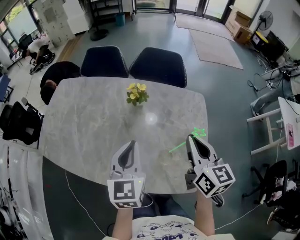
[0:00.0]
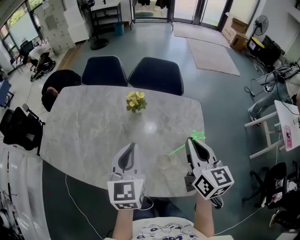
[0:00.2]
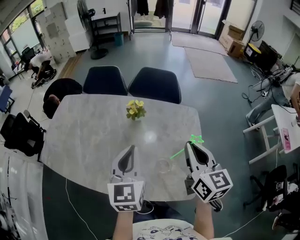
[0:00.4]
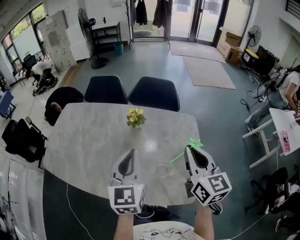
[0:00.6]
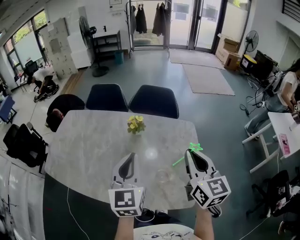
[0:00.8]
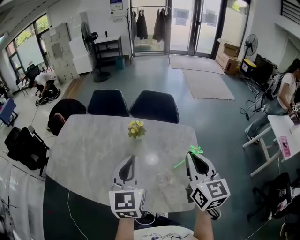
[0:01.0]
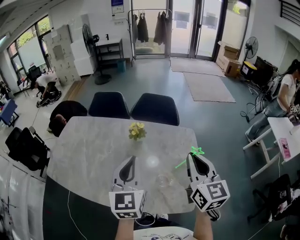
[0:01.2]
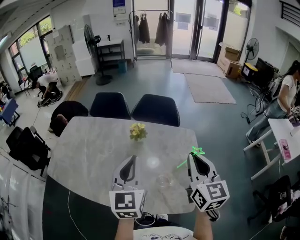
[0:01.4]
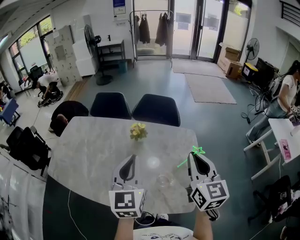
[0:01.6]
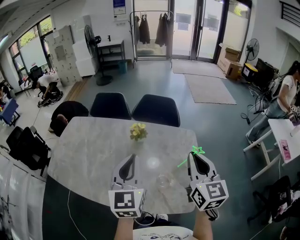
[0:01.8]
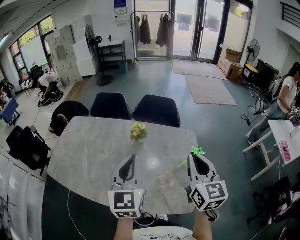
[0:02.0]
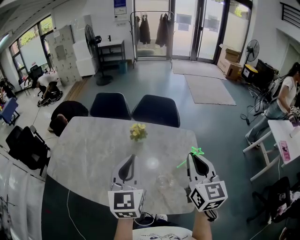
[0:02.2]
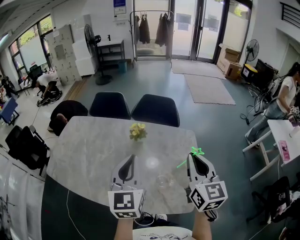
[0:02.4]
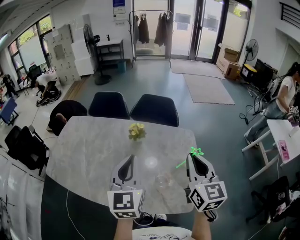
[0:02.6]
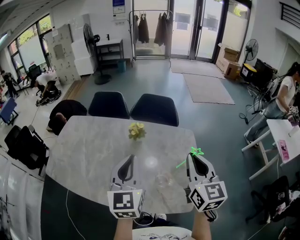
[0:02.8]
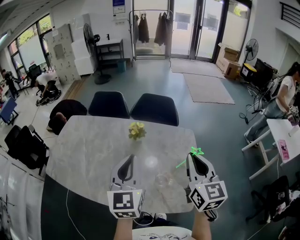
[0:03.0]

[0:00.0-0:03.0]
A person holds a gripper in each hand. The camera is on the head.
0.0 to 1.6 s: Both grippers travel together upward, some 10 cm.
1.6 to 3.0 s: The two grippers keep their place.

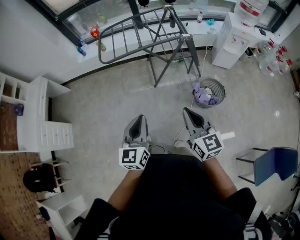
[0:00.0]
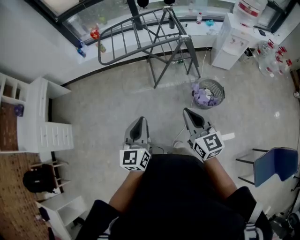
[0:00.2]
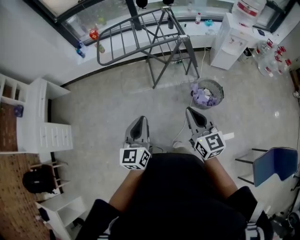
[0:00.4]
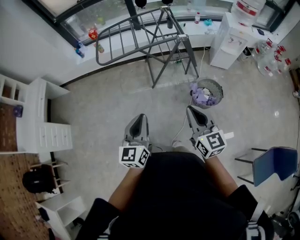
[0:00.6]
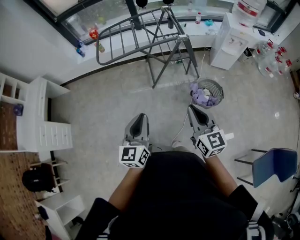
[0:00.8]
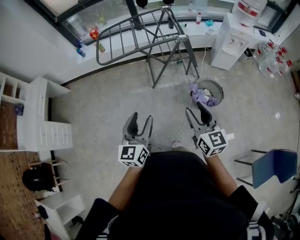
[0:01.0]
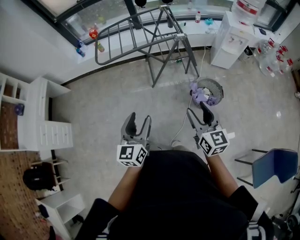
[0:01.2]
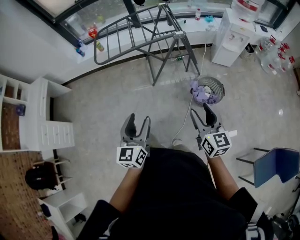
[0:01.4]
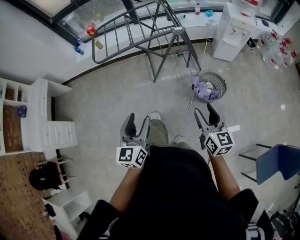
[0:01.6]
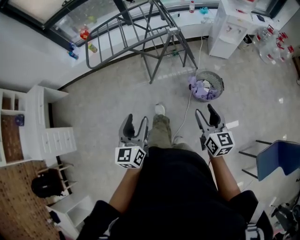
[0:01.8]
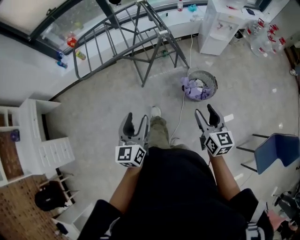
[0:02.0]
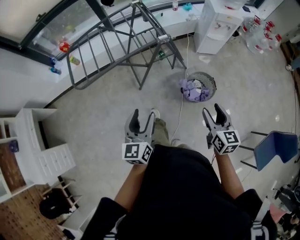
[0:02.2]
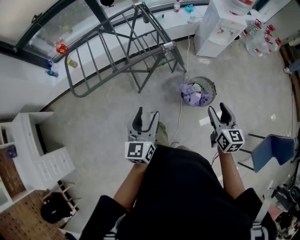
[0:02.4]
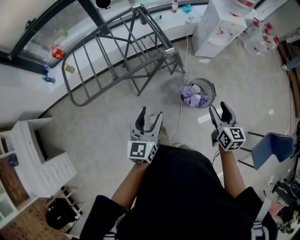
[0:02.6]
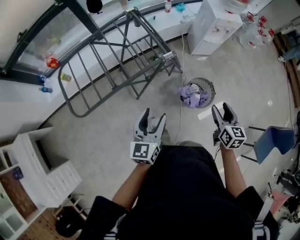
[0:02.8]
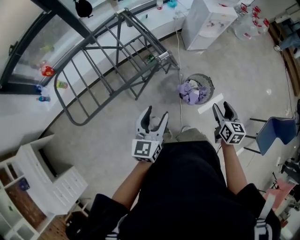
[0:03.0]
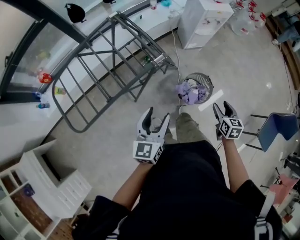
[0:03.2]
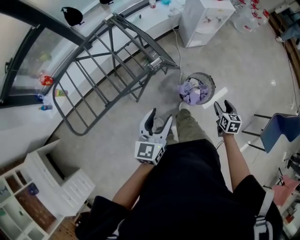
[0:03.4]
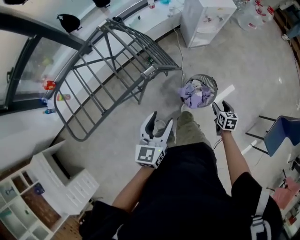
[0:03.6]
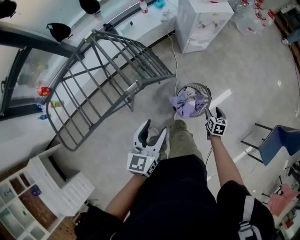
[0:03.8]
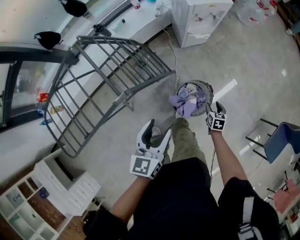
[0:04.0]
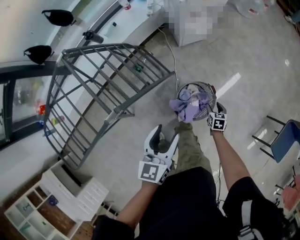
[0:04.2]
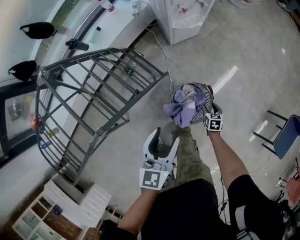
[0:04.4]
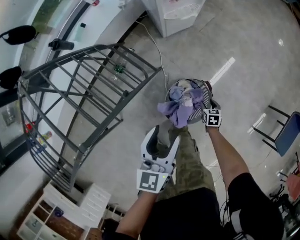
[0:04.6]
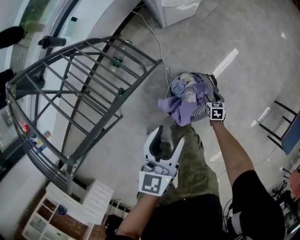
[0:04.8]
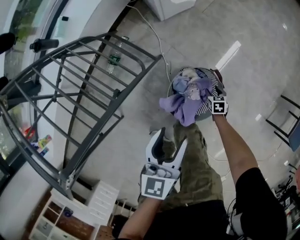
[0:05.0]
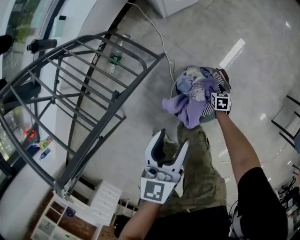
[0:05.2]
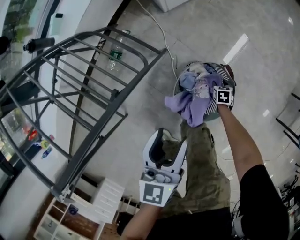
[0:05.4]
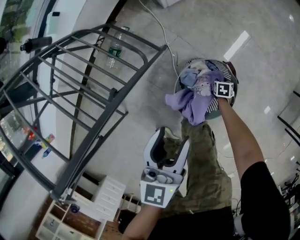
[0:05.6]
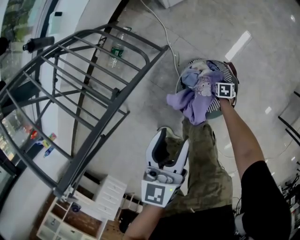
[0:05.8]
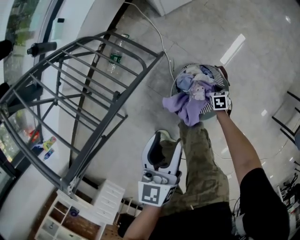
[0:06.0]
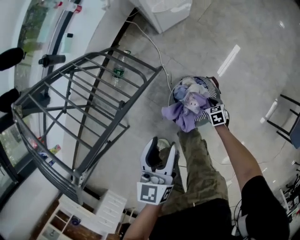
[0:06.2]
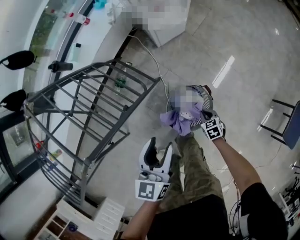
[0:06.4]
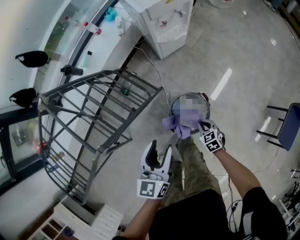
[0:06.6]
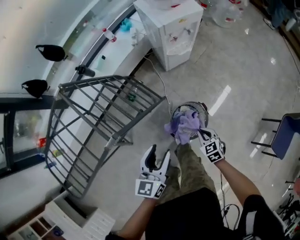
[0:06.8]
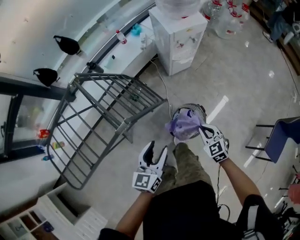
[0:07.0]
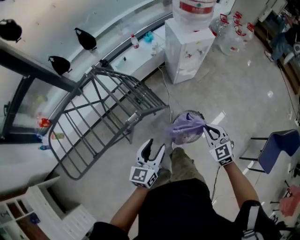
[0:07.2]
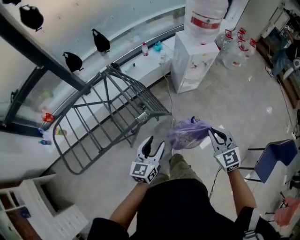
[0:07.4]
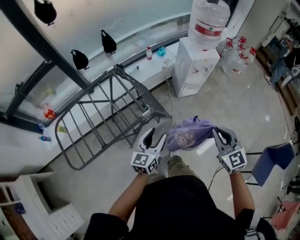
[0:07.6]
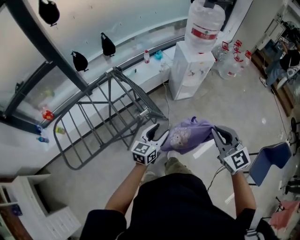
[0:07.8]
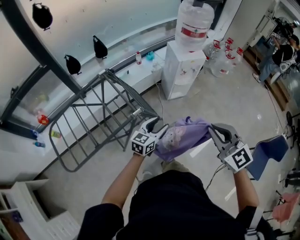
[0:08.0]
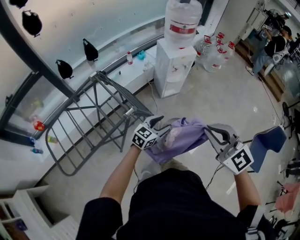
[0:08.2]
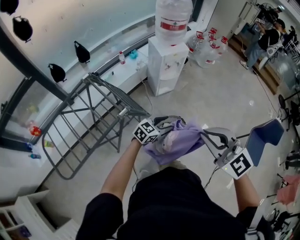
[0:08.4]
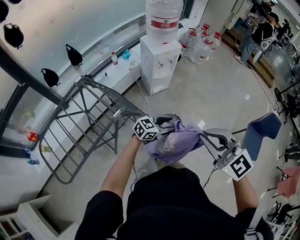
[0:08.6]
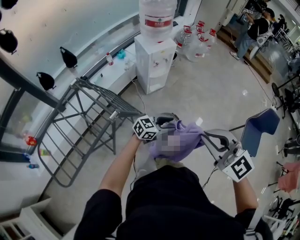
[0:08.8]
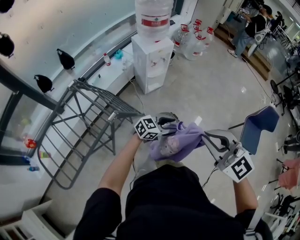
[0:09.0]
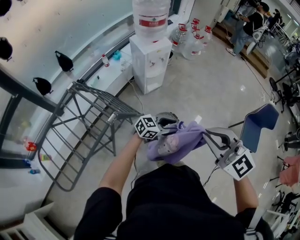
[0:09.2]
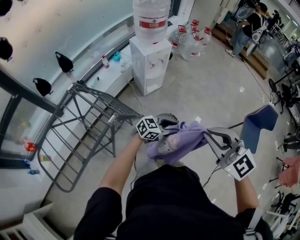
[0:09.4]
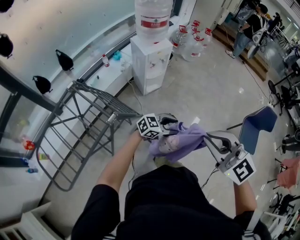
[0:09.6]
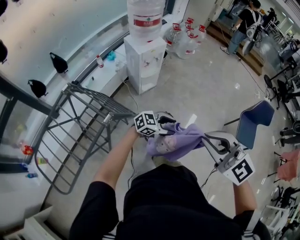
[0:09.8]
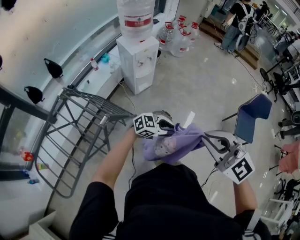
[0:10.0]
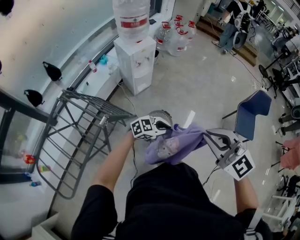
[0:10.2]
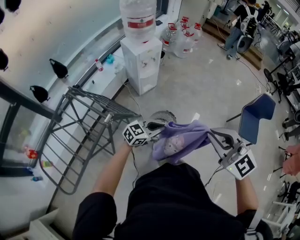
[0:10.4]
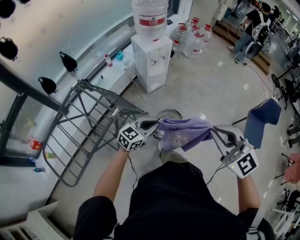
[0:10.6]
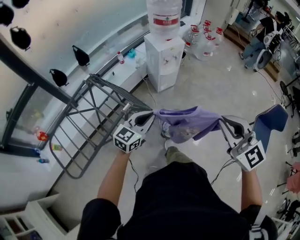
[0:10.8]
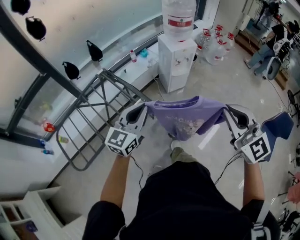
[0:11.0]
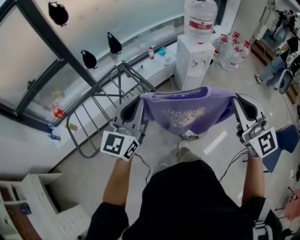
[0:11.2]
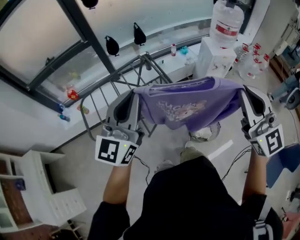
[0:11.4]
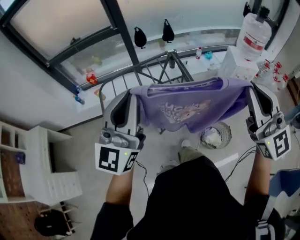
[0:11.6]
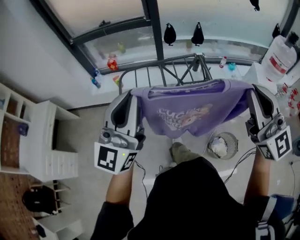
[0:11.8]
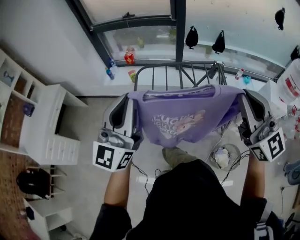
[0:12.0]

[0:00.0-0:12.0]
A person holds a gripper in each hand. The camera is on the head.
0.0 to 1.6 s: The right gripper is displaced to the right and downward by about 15 cm, and opens, while the left gripper heads to the right, covering some 5 cm, and opens its fingers.
1.6 to 3.0 s: The left gripper changes place by roughly 35 cm, and turns by roughly 30 degrees. Meanwhile the right gripper changes place by approximately 25 cm, and rotates roughly 40 degrees.
3.0 to 4.4 s: The left gripper moves forward, to the right and downward, roughly 40 cm. Meanwhile the right gripper moves downward and forward, some 50 cm, and swivels roughly 30 degrees.
4.4 to 6.0 s: The two grippers go some 20 cm downward. The right gripper closes up.
6.0 to 7.6 s: The right gripper goes about 90 cm upward, and angles its fingers upward, by approximately 60 degrees. Meanwhile the left gripper travels upward by some 35 cm.
7.6 to 9.0 s: The right gripper is displaced upward by roughly 10 cm. The left gripper changes place by about 25 cm, and changes its angle by about 70 degrees.
9.0 to 10.4 s: The left gripper shifts by approximately 5 cm, and closes. Meanwhile the right gripper moves about 5 cm.
10.4 to 12.0 s: The pair of grippers is taken some 50 cm. The right gripper changes its angle by approximately 60 degrees, while the left gripper tilts its fingers some 30 degrees upward.

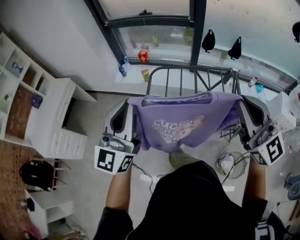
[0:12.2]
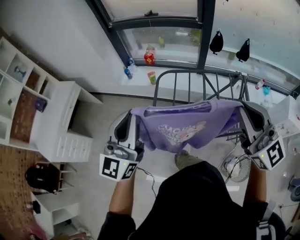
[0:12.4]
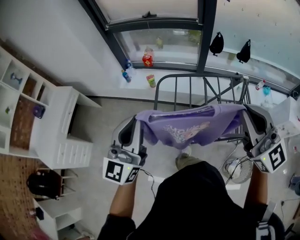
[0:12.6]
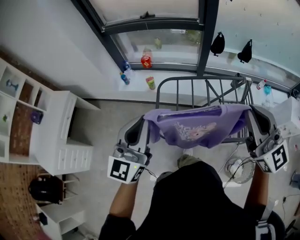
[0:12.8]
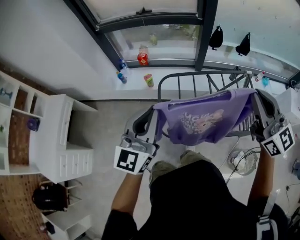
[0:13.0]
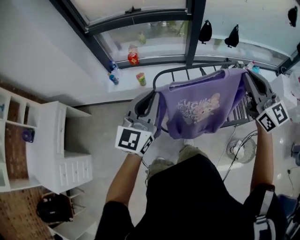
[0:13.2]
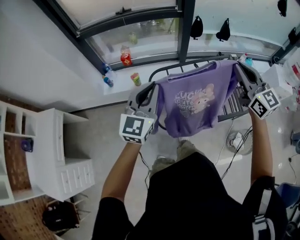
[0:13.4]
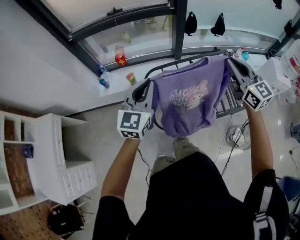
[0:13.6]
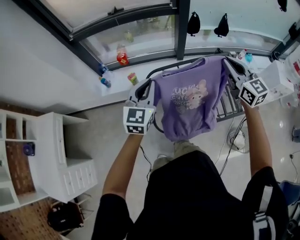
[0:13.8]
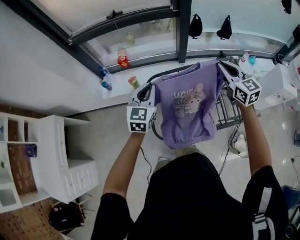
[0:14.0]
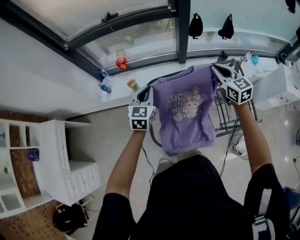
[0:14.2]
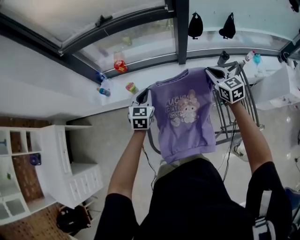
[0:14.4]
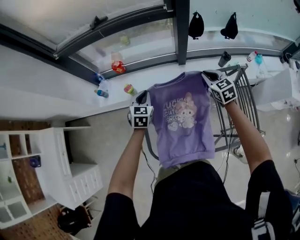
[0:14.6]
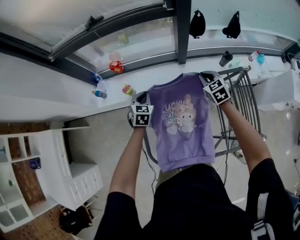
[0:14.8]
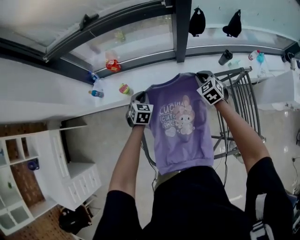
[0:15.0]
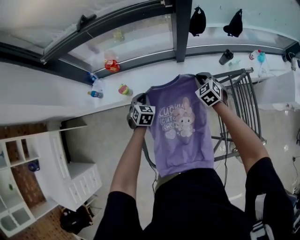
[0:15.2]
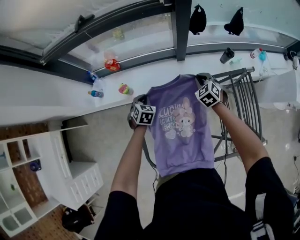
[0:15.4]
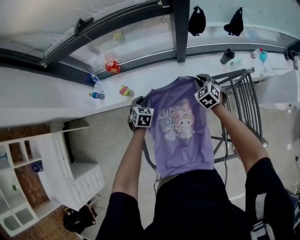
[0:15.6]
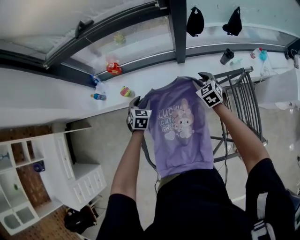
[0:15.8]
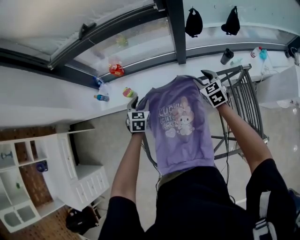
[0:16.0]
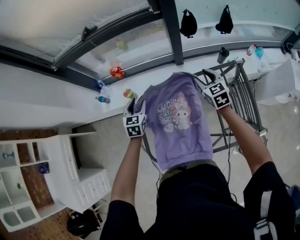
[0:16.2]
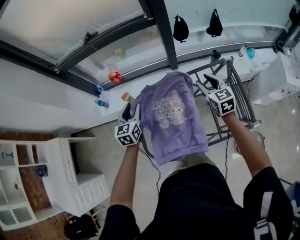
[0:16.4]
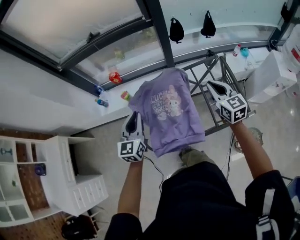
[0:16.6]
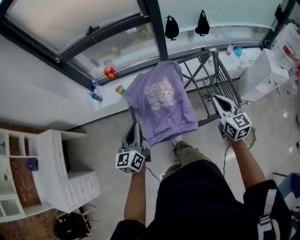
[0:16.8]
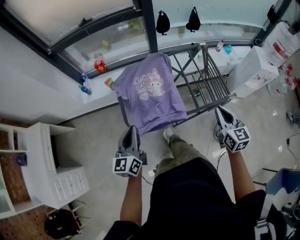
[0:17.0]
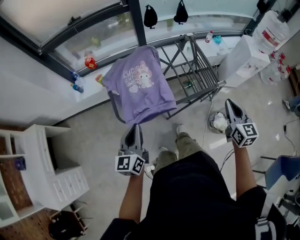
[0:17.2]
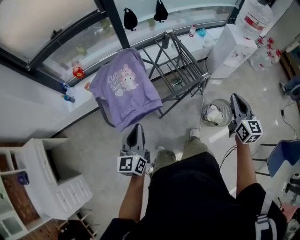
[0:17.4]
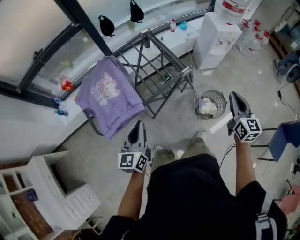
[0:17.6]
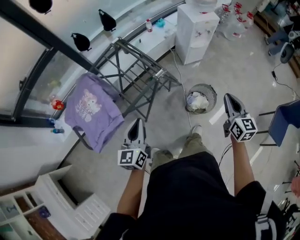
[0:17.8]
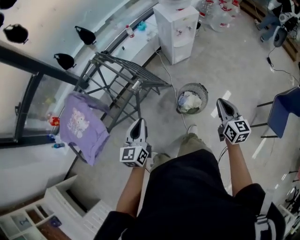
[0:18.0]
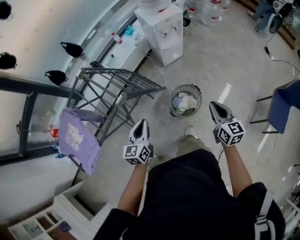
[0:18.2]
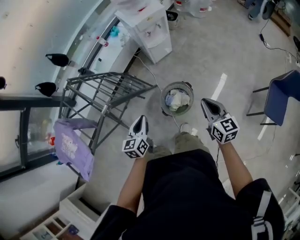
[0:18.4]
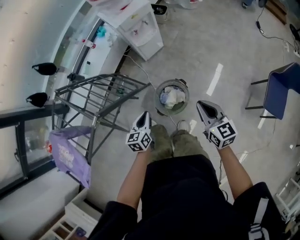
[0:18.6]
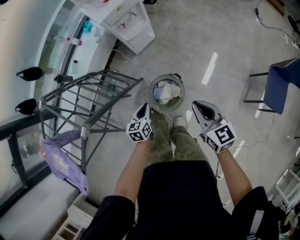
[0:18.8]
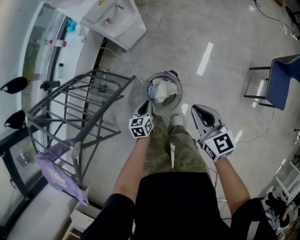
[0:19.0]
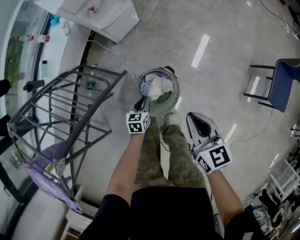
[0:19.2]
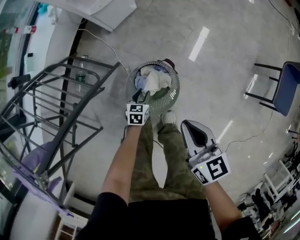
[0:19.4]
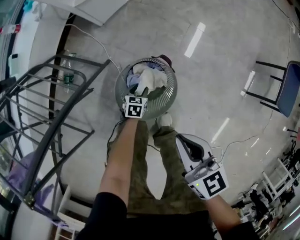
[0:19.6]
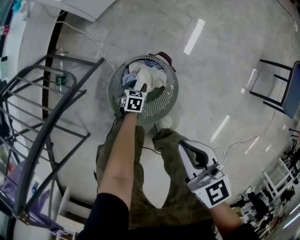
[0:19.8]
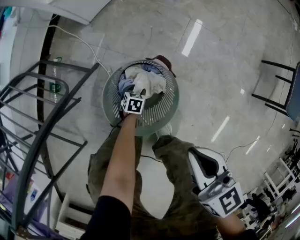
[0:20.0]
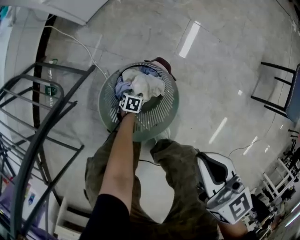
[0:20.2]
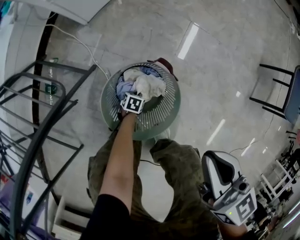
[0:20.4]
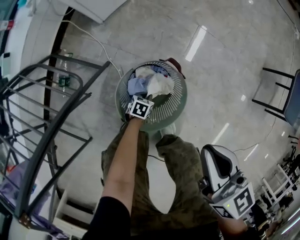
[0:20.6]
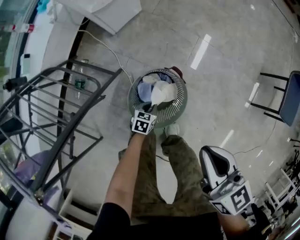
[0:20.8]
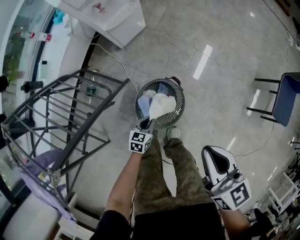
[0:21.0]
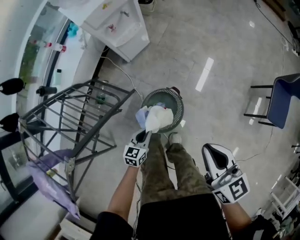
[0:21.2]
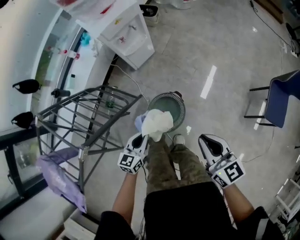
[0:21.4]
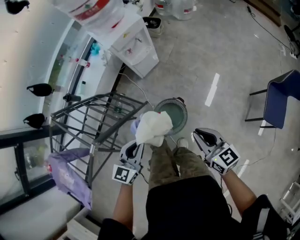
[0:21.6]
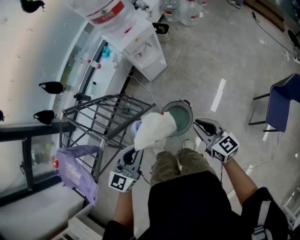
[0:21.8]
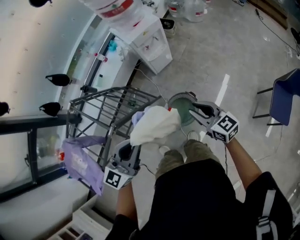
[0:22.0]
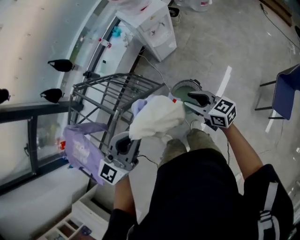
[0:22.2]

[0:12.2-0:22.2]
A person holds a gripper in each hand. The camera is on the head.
12.2 to 13.6 s: Both grippers move forward and downward, about 30 cm. The left gripper changes its angle by some 30 degrees; the right gripper changes its angle by roughly 30 degrees.
13.6 to 15.0 s: Both grippers travel together downward and forward, approximately 40 cm. The right gripper angles its fingers downward, by some 40 degrees; the left gripper points its fingers about 40 degrees further downward.
15.0 to 16.4 s: Both grippers travel together upward and backward, about 20 cm. The left gripper changes its angle by some 30 degrees, and opens. The right gripper changes its angle by about 30 degrees, and opens.
16.4 to 18.0 s: Both grippers are carried roughly 70 cm. The right gripper changes its angle by roughly 50 degrees, and closes its fingers. The left gripper changes its angle by approximately 40 degrees, and closes.
18.0 to 19.4 s: The left gripper moves downward, to the right and forward, some 80 cm, tilts its fingers approximately 40 degrees downward, and opens up. Meanwhile the right gripper heads downward, covering roughly 30 cm.
19.4 to 20.8 s: The left gripper goes downward and returns, some 30 cm each way, and closes up. The right gripper goes downward and returns, roughly 10 cm each way.
20.8 to 22.2 s: The right gripper heads upward, covering approximately 25 cm, rotates some 30 degrees, and opens. The left gripper is displaced upward by about 80 cm, and tilts its fingers approximately 60 degrees upward.
